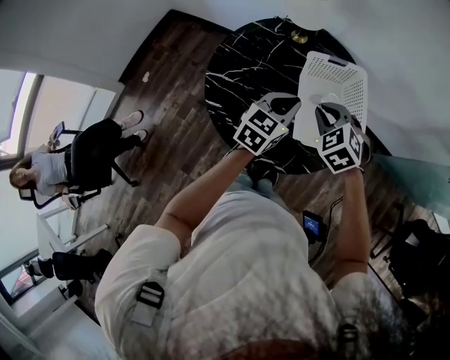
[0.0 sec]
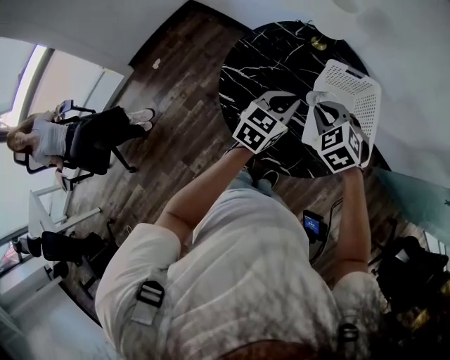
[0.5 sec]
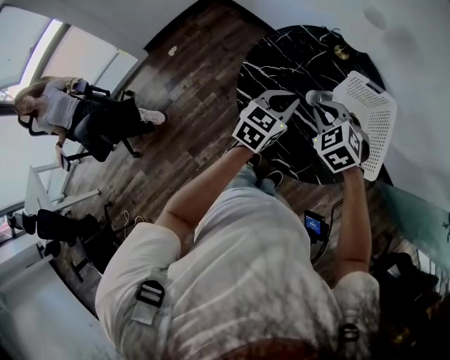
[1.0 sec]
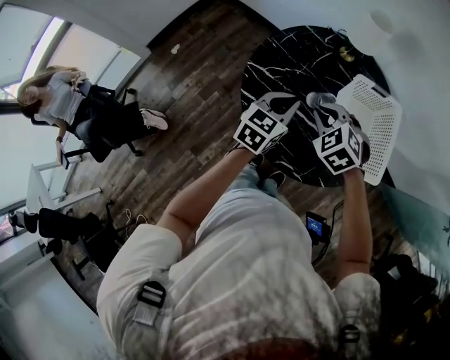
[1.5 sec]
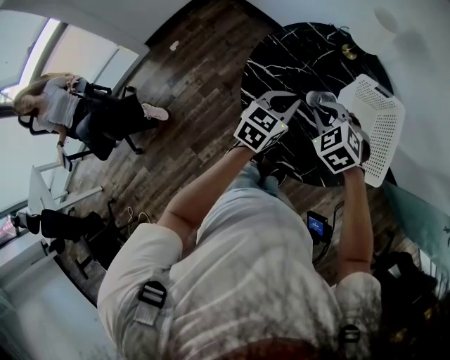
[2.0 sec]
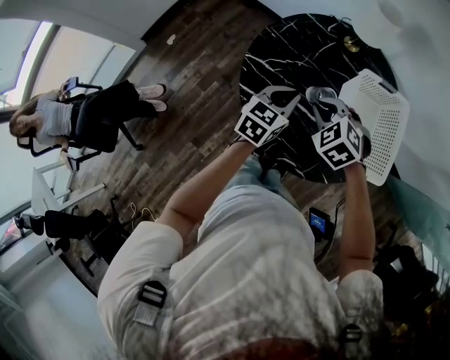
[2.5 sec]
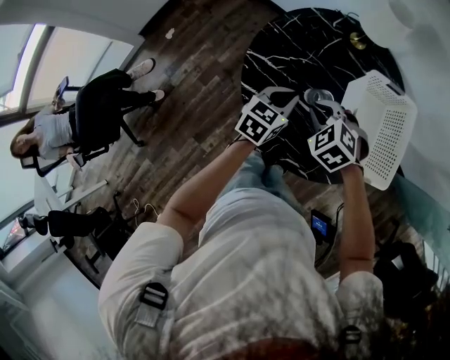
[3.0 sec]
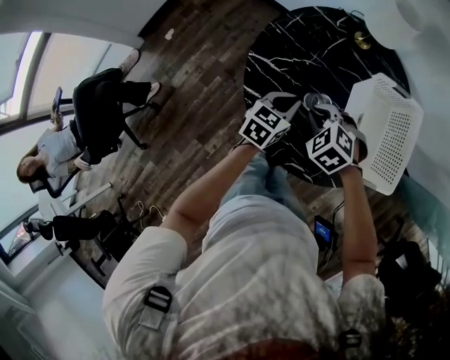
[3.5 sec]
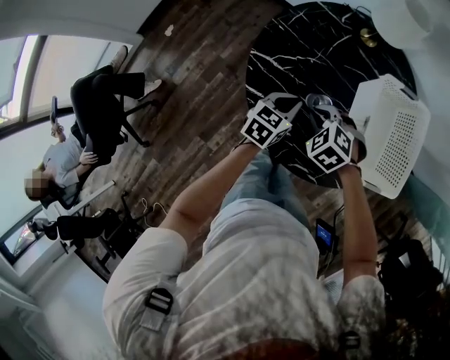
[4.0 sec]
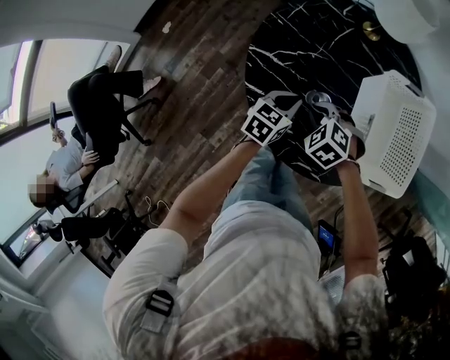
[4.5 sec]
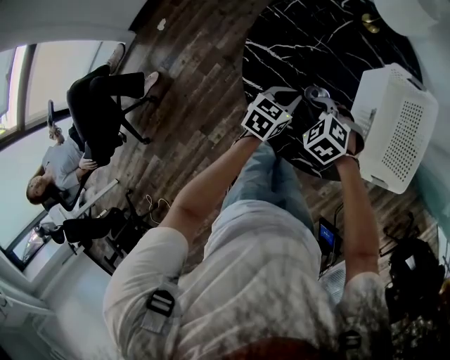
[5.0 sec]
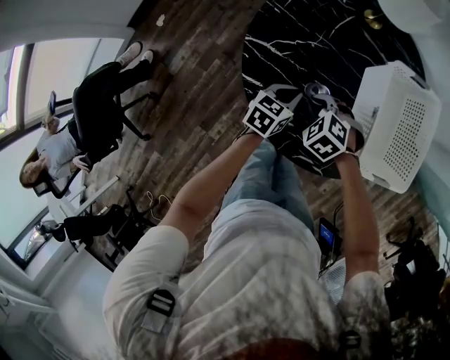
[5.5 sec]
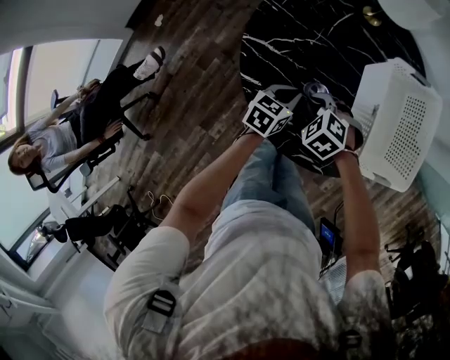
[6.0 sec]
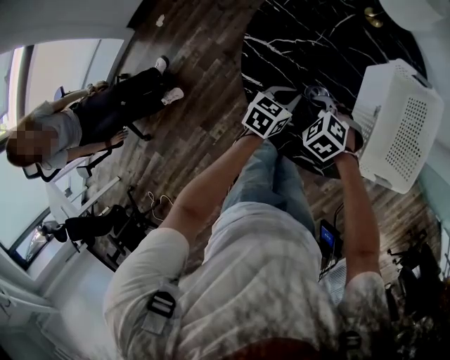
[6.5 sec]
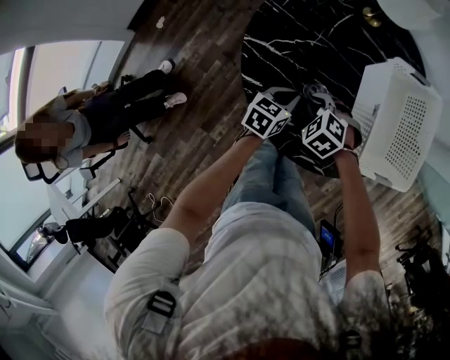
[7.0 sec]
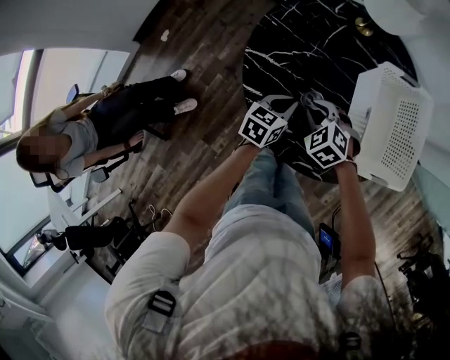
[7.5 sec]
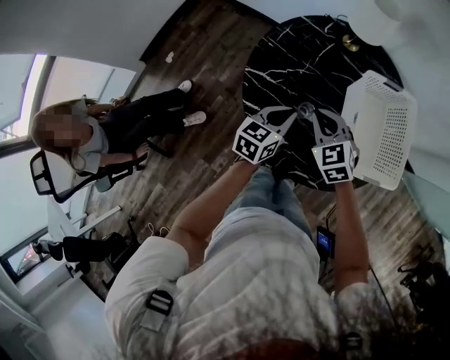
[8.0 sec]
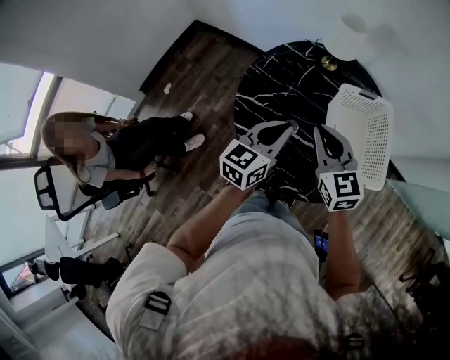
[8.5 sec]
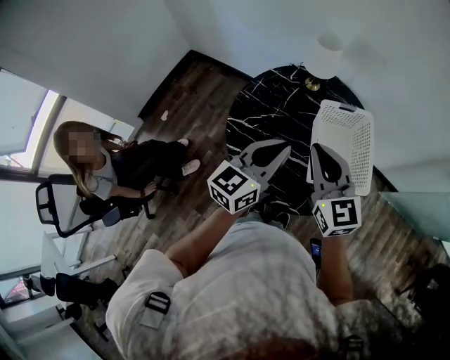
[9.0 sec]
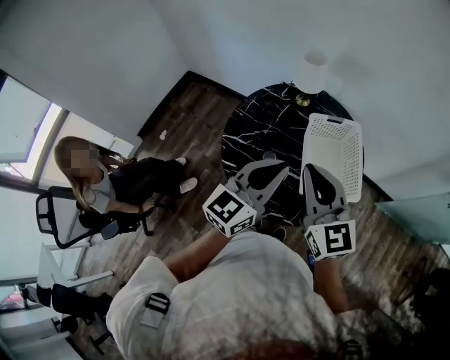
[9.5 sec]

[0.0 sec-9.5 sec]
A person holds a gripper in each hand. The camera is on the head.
0.0 sec to 2.0 sec: Both grippers travel together to the left, some 15 cm.
2.0 sec to 4.0 sec: Both grippers move downward, about 15 cm.
4.0 sec to 5.5 sec: Both grippers travel together downward, some 5 cm.
5.5 sec to 7.5 sec: The grippers stay close to where they were, moving slightly.
7.5 sec to 9.5 sec: The grippers both shift upward by about 40 cm. The right gripper points its fingers about 60 degrees further upward. Meanwhile the left gripper points its fingers about 40 degrees further upward.

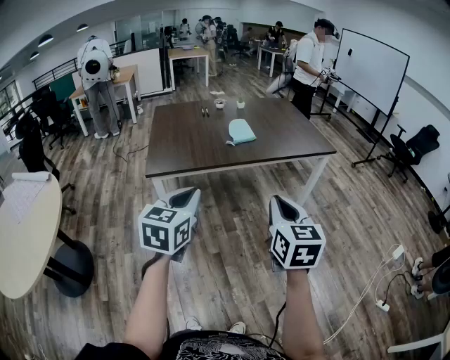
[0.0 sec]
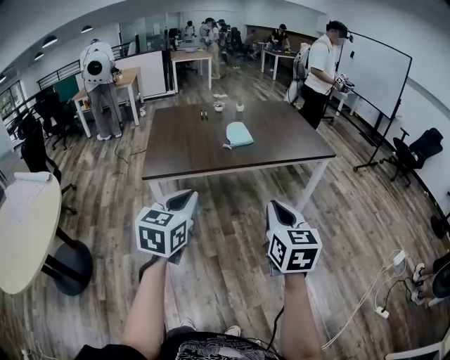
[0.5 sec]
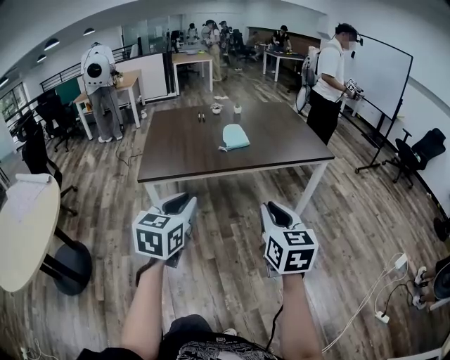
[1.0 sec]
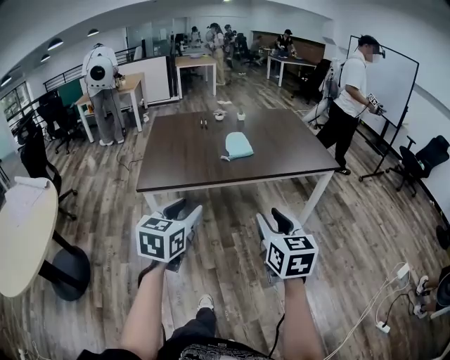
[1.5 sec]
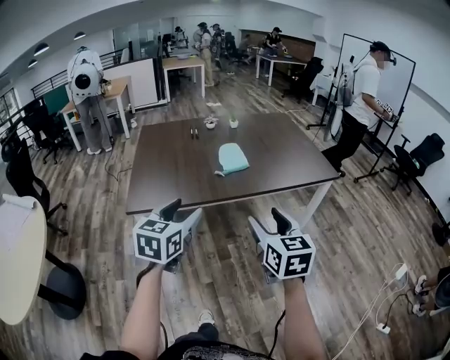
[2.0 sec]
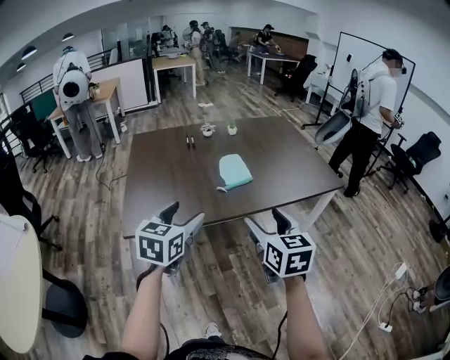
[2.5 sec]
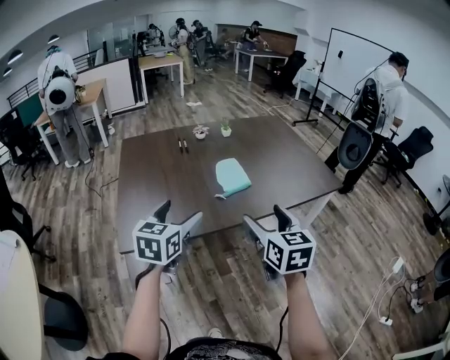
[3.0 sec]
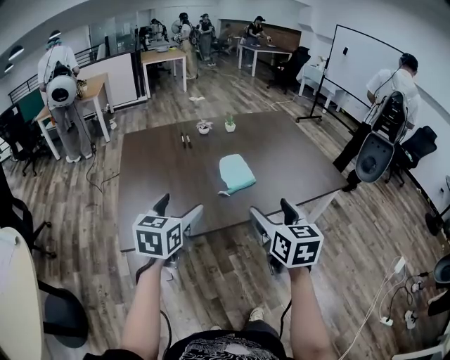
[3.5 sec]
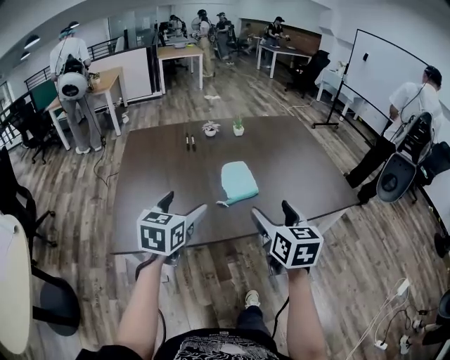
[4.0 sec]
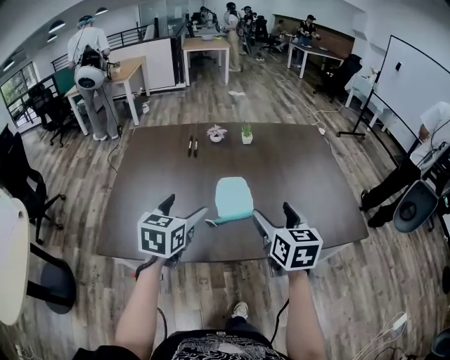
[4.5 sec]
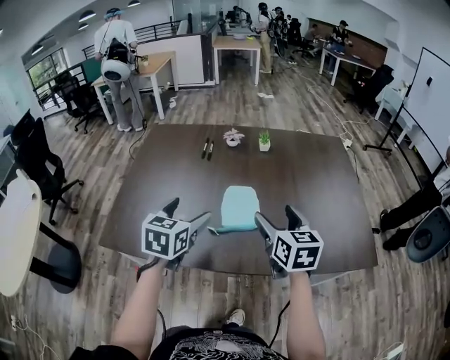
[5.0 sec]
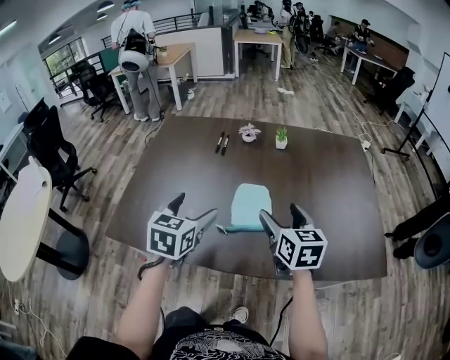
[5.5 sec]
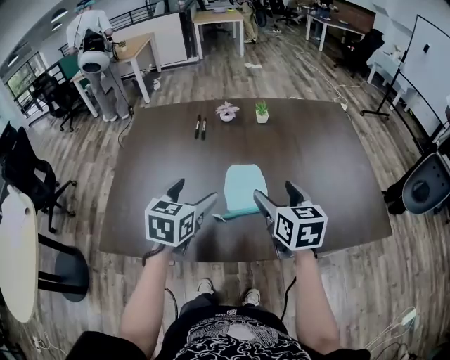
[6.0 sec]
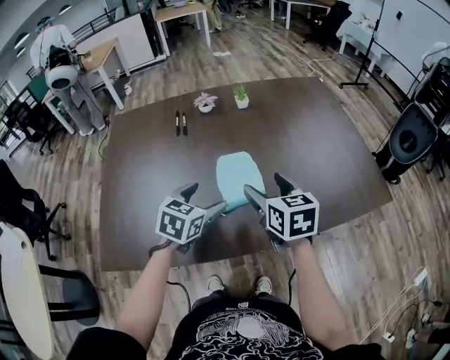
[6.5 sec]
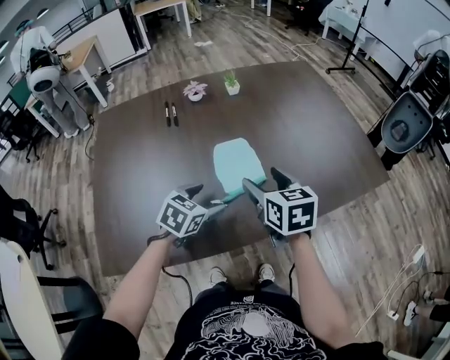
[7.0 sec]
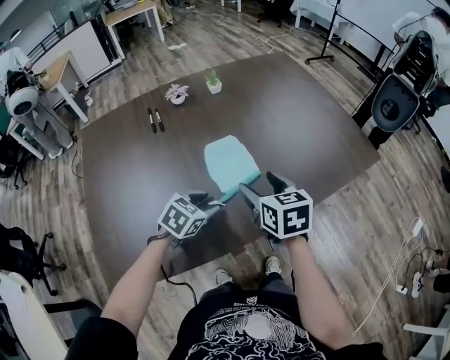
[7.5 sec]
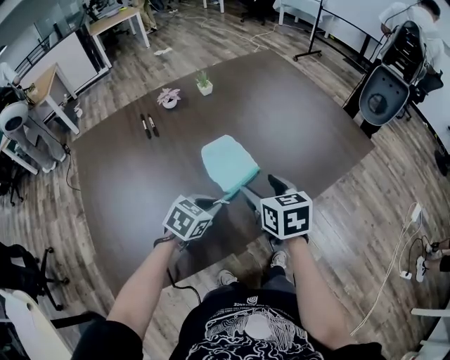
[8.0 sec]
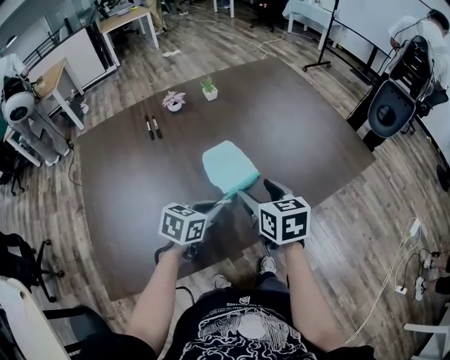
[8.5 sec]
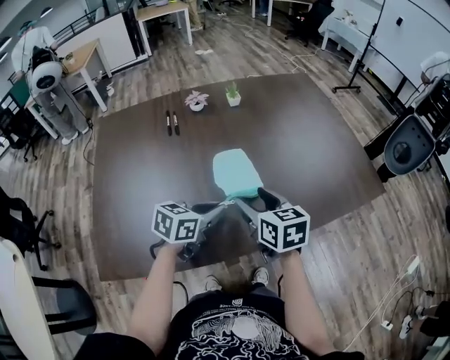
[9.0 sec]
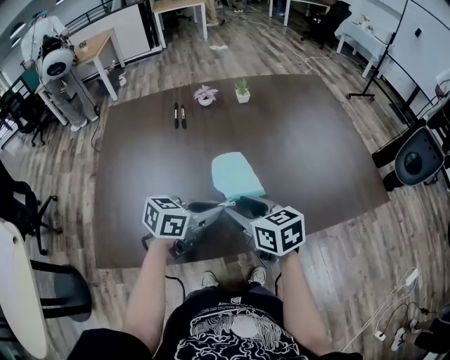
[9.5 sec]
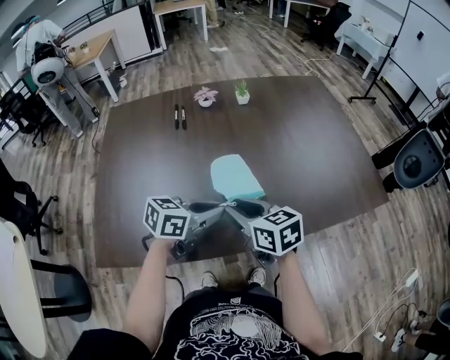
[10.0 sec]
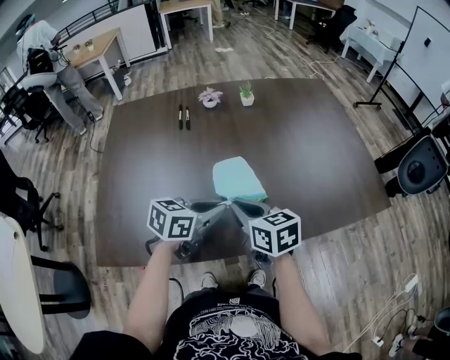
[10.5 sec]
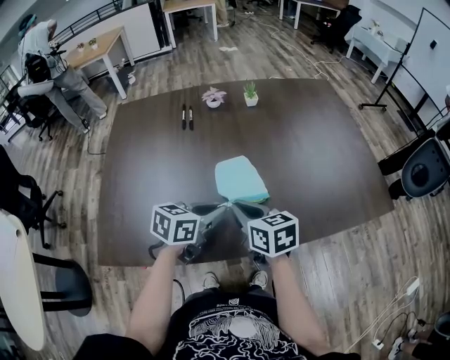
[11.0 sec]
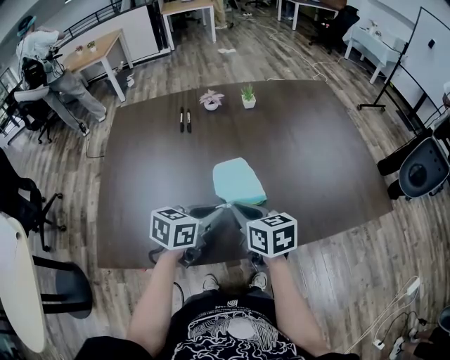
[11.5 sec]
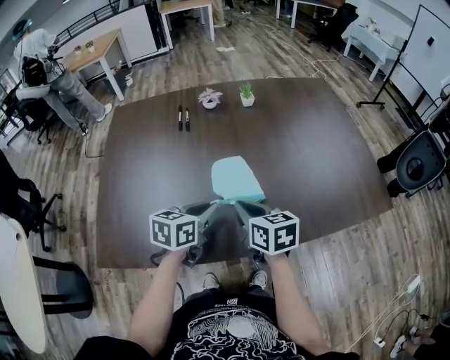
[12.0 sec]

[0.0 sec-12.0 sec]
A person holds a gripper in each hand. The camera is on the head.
0.0 sec to 2.0 sec: The grippers both shift forward by about 20 cm. The right gripper opens, while the left gripper opens.
2.0 sec to 4.0 sec: Both grippers move forward, some 25 cm. The left gripper opens.
4.0 sec to 6.0 sec: The right gripper shifts roughly 20 cm forward; the left gripper travels forward and to the right by approximately 15 cm.
6.0 sec to 8.0 sec: The right gripper goes approximately 10 cm downward, and turns by approximately 20 degrees; the left gripper shifts some 15 cm downward, rotates approximately 50 degrees, and closes up.
8.0 sec to 10.0 sec: The right gripper goes about 5 cm to the left, rotates about 40 degrees, and closes. The left gripper heads upward, covering some 10 cm, and rotates about 30 degrees.
10.0 sec to 12.0 sec: The left gripper rotates about 20 degrees.

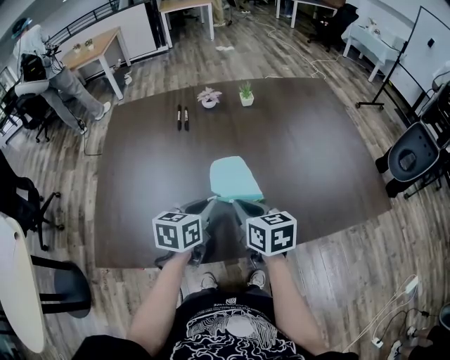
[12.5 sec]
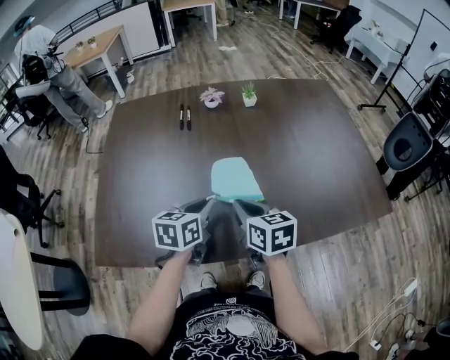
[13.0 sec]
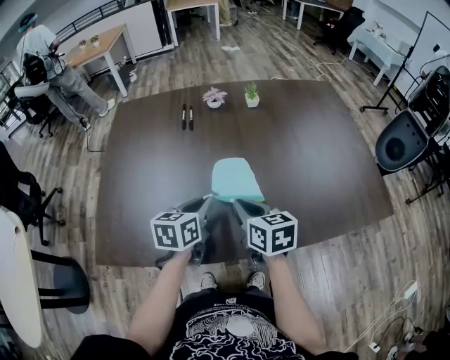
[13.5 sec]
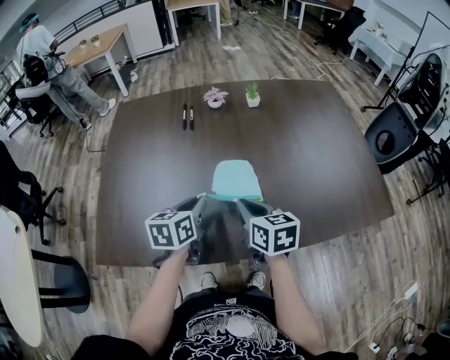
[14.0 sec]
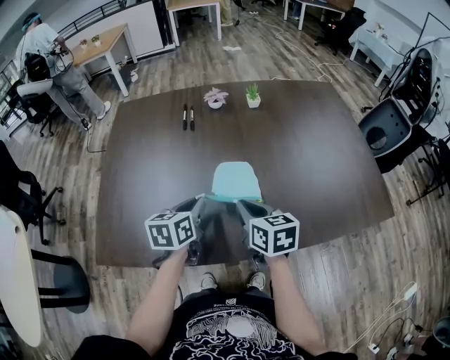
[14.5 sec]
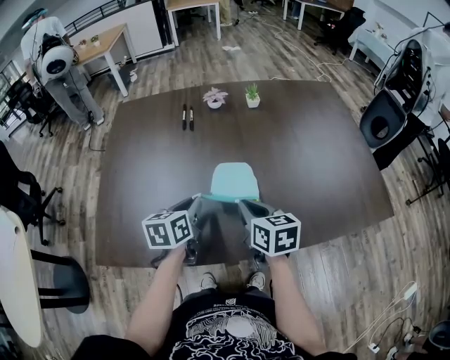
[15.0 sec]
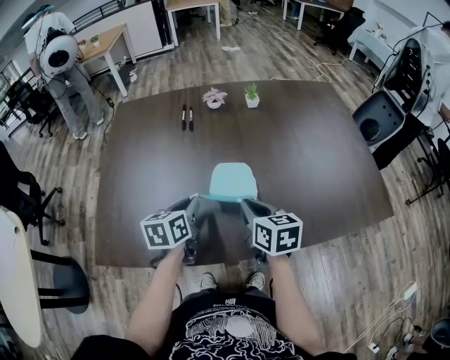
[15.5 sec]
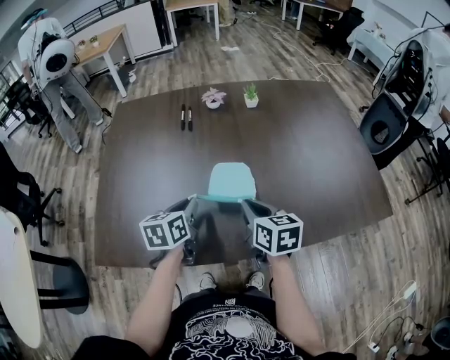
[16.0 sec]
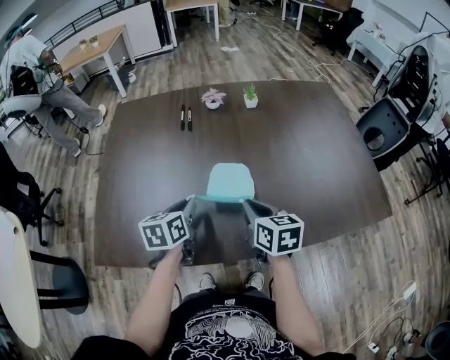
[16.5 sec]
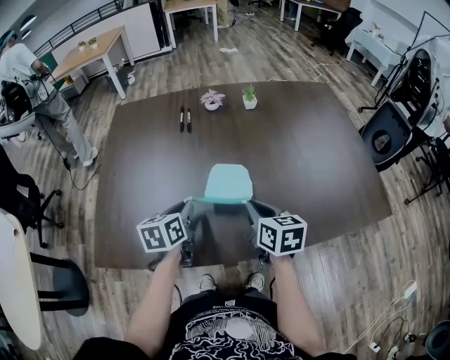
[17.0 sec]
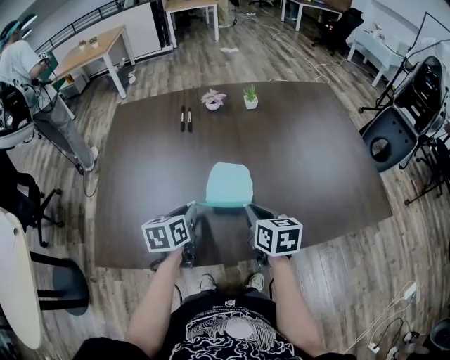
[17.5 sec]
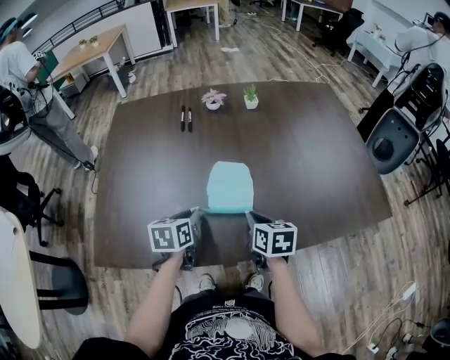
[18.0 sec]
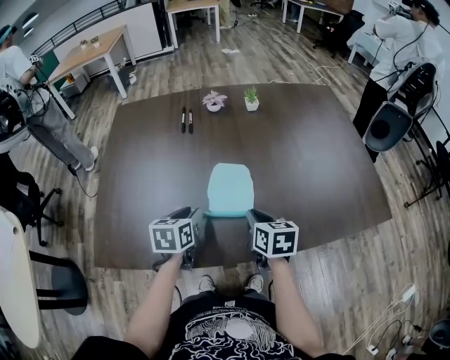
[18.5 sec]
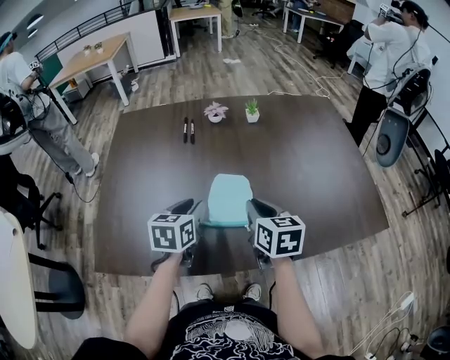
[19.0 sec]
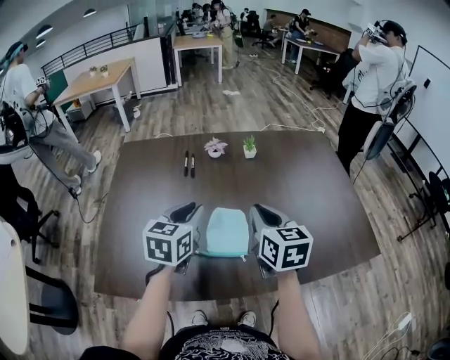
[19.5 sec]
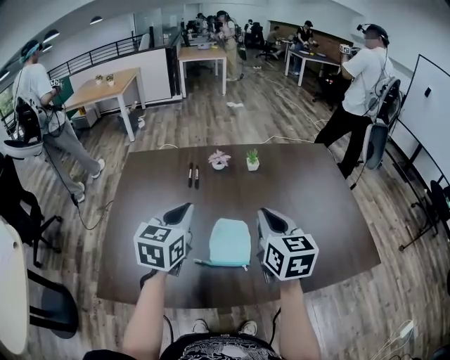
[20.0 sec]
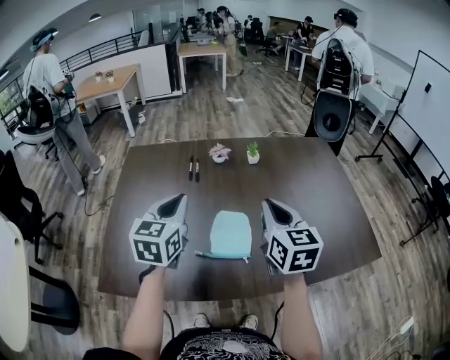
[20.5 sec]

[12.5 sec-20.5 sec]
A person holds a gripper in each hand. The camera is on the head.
12.5 sec to 14.5 sec: There are only small adjustments of the grippers.
14.5 sec to 16.5 sec: The grippers make only small movements.
18.5 sec to 20.5 sec: The two grippers go roughly 25 cm upward. The left gripper changes its angle by approximately 30 degrees, while the right gripper changes its angle by about 30 degrees.
